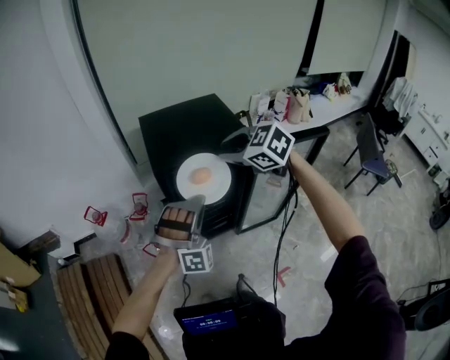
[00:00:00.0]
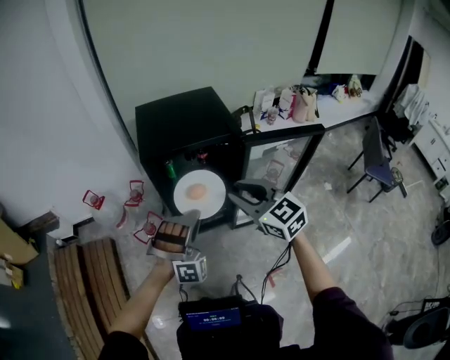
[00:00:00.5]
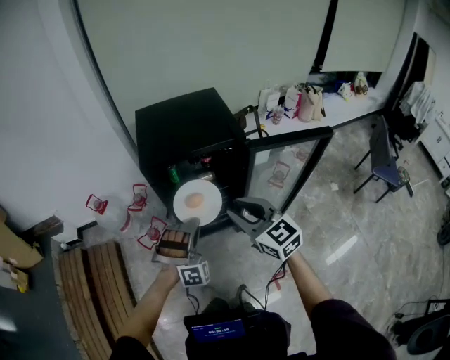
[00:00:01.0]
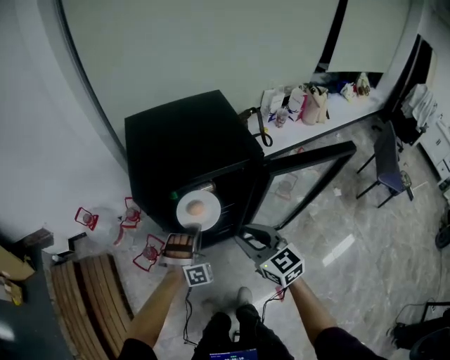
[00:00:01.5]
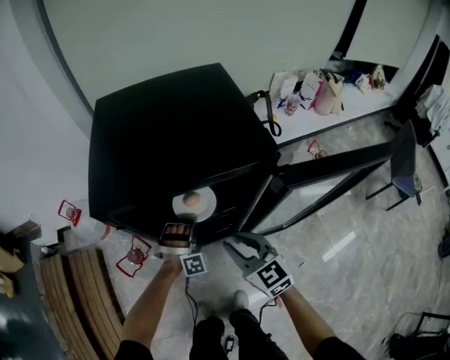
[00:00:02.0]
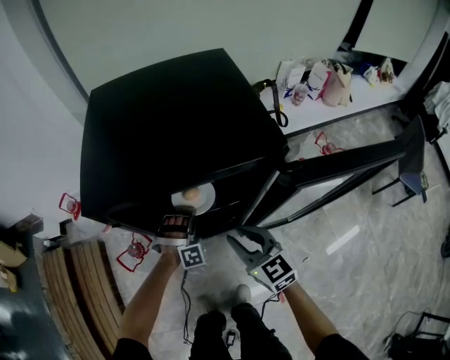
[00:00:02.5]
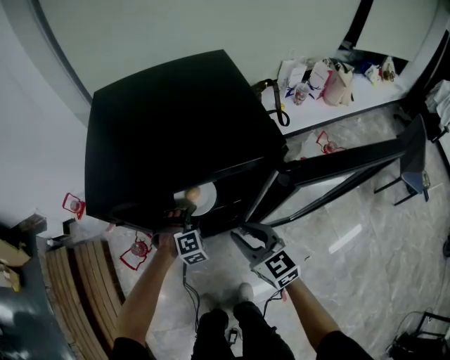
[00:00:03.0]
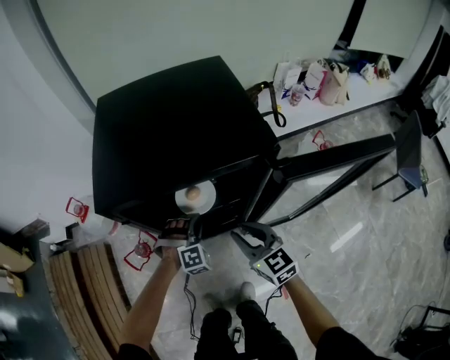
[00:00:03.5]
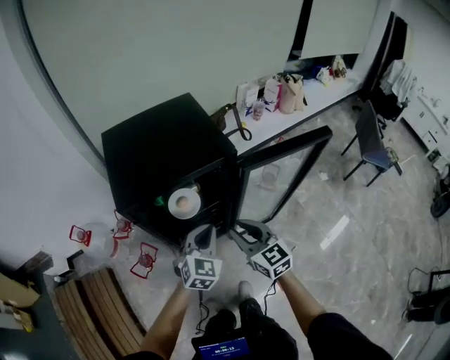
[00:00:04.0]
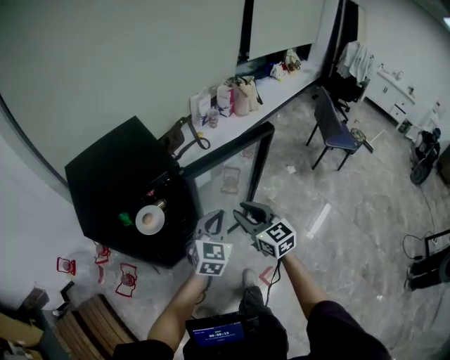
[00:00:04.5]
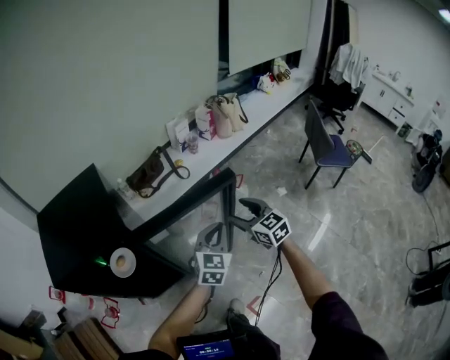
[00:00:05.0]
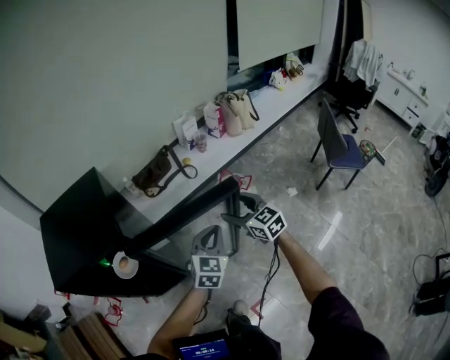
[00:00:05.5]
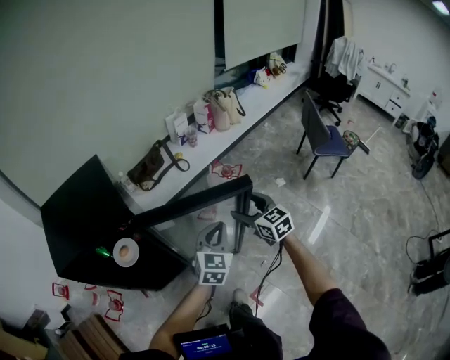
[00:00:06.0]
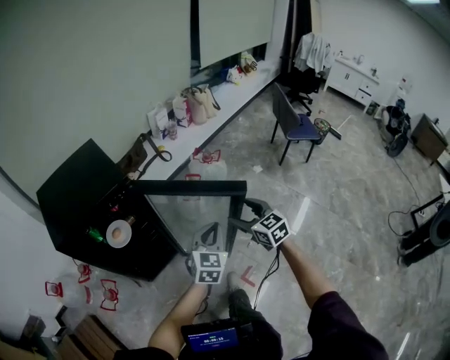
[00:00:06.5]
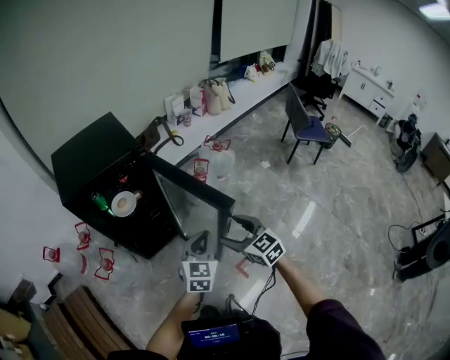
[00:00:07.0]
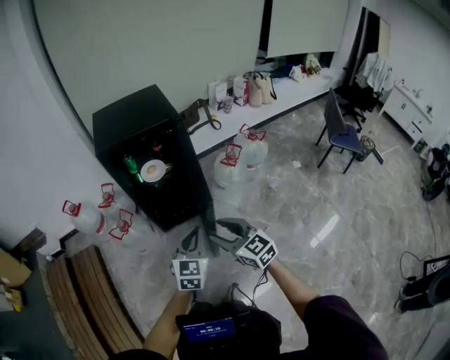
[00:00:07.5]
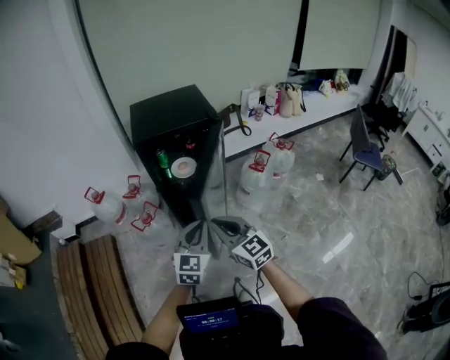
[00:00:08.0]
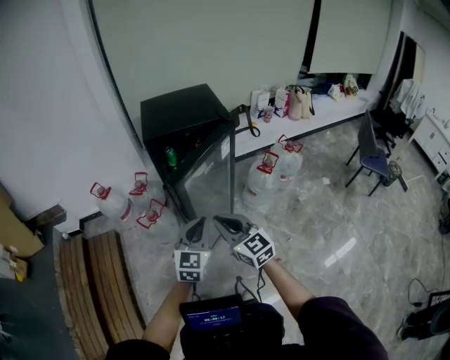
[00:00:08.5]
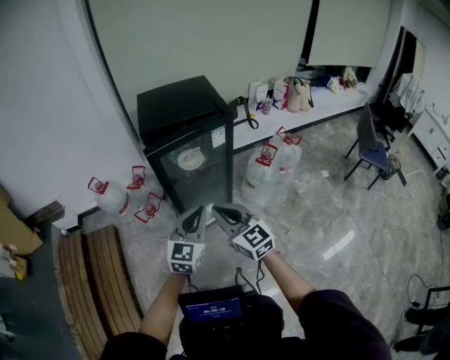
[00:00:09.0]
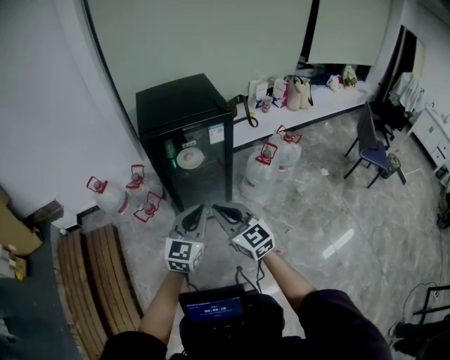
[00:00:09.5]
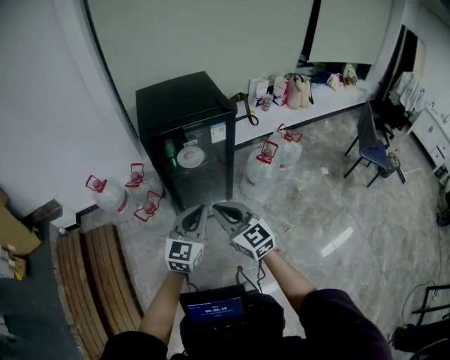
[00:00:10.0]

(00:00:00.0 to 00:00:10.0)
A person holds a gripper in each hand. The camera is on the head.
00:00:00.0 - 00:00:02.0: The right gripper travels downward by some 30 cm, and swivels roughly 30 degrees. Meanwhile the left gripper goes about 40 cm downward and forward, and turns by approximately 20 degrees.
00:00:02.0 - 00:00:04.0: The left gripper shifts some 25 cm upward and backward, twists some 60 degrees counterclockwise, seen from behind, and opens and closes again; the right gripper moves upward and backward, some 15 cm.
00:00:04.0 - 00:00:06.0: Both grippers move to the right, some 40 cm. The right gripper opens its fingers.
00:00:06.0 - 00:00:08.0: Both grippers are carried roughly 50 cm. The right gripper rotates some 30 degrees, and closes. The left gripper swivels some 20 degrees.
00:00:08.0 - 00:00:10.0: There are only small adjustments of the grippers.

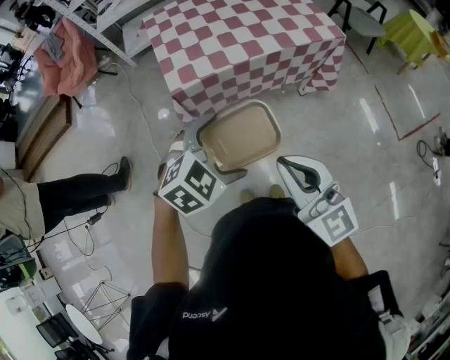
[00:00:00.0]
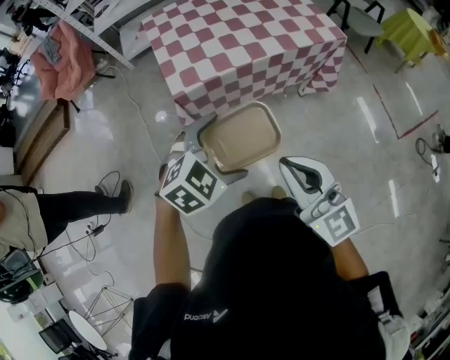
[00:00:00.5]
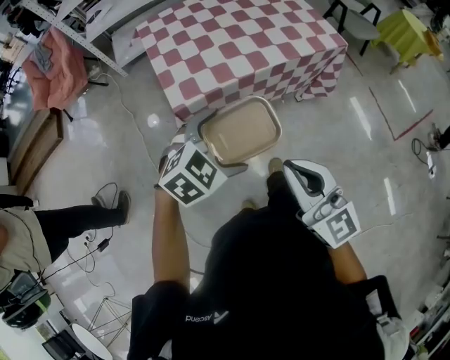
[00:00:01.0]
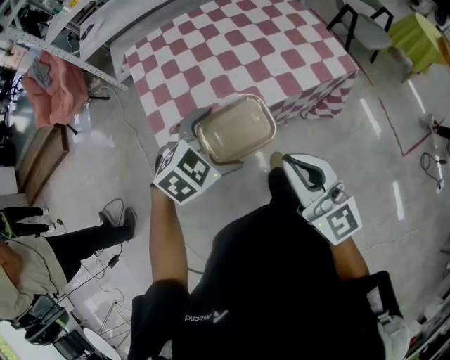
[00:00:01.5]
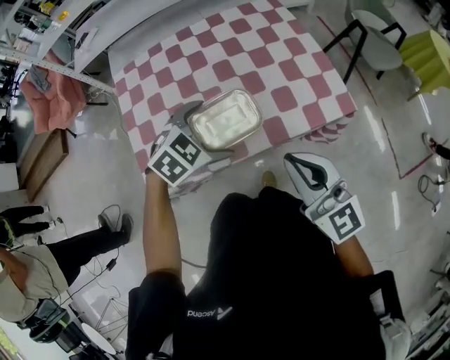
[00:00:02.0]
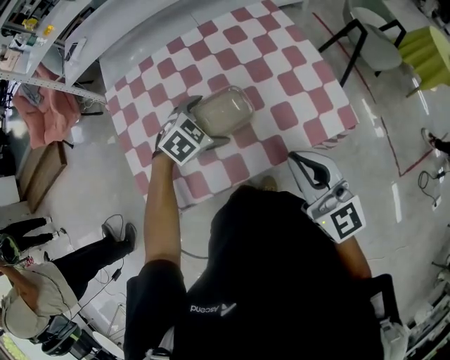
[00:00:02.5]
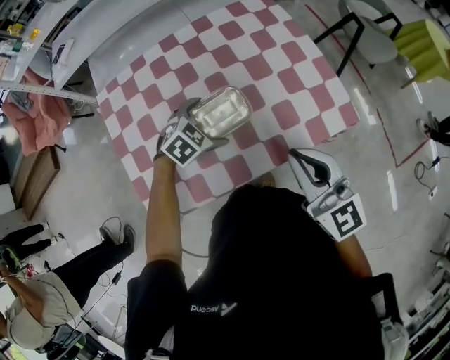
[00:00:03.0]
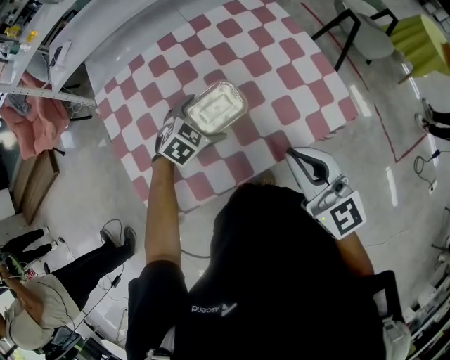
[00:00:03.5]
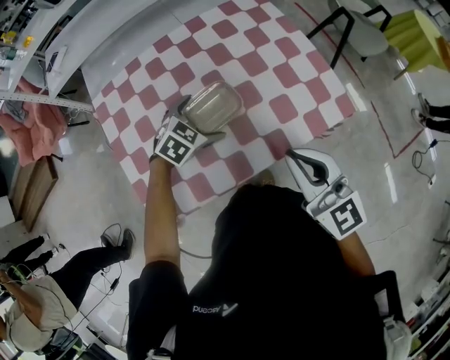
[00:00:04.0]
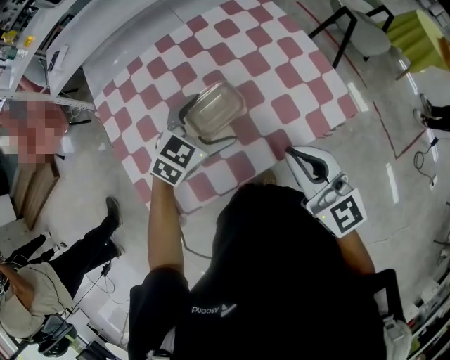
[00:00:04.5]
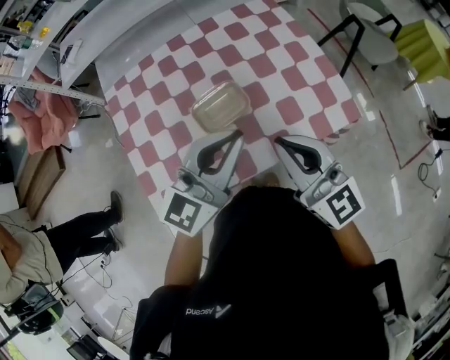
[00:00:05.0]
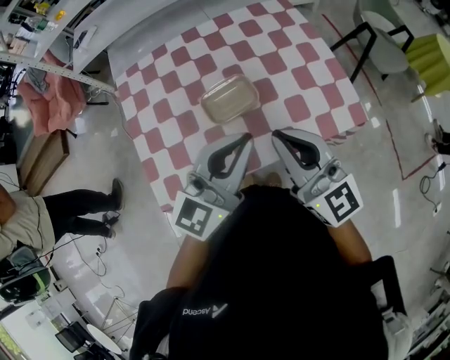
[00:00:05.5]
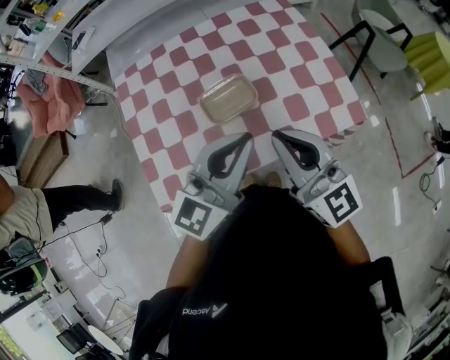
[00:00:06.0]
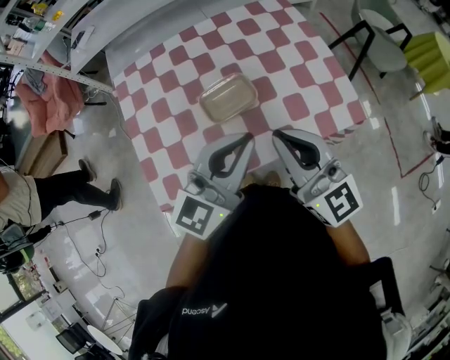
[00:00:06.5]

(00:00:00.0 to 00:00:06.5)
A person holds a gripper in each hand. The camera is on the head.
00:00:00.0 - 00:00:02.0: The pair of grippers is taken forward, roughly 50 cm.
00:00:02.0 - 00:00:04.5: Both grippers move forward, about 10 cm.
00:00:04.5 - 00:00:06.5: The right gripper changes place by about 5 cm. The left gripper goes about 20 cm upward and backward, tilts its fingers roughly 40 degrees upward, and closes.

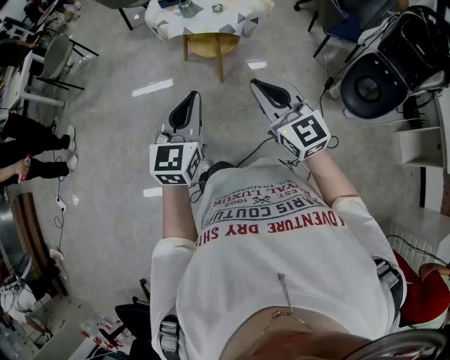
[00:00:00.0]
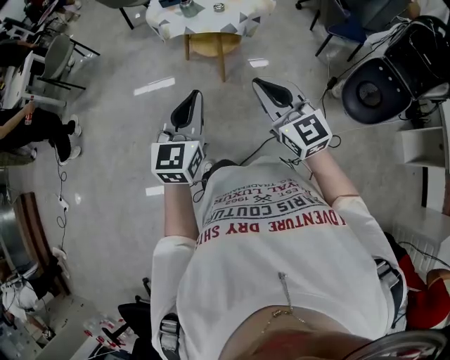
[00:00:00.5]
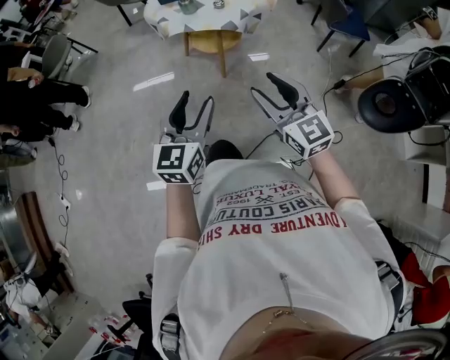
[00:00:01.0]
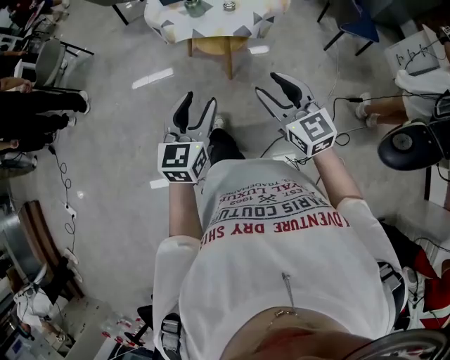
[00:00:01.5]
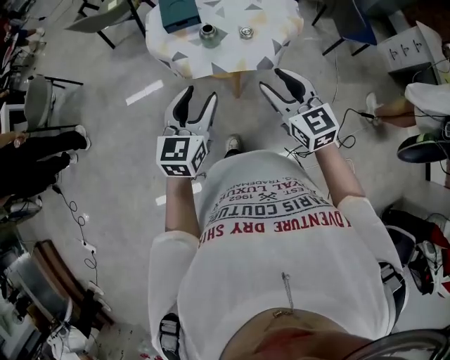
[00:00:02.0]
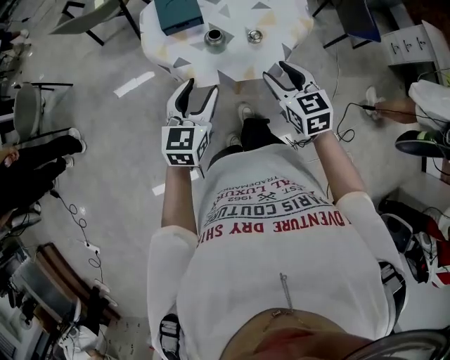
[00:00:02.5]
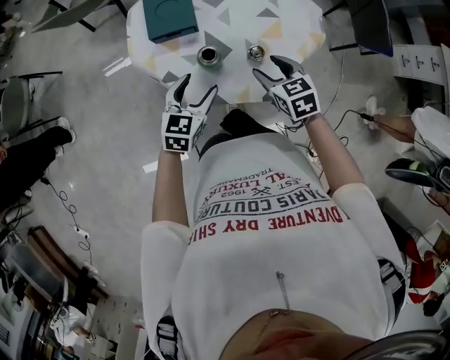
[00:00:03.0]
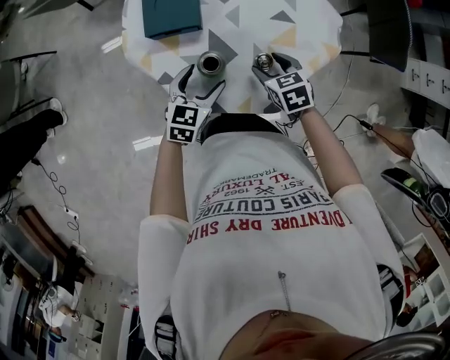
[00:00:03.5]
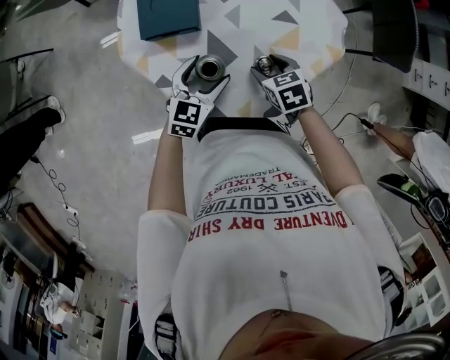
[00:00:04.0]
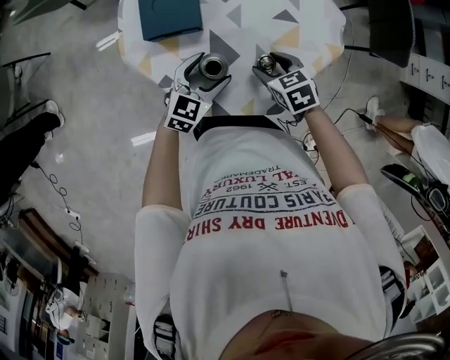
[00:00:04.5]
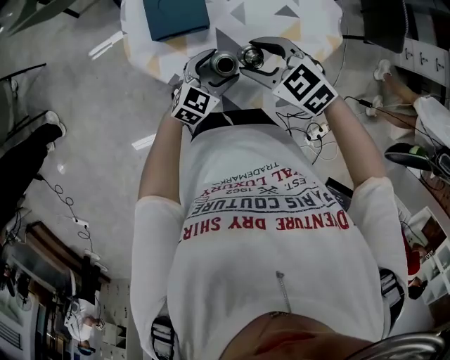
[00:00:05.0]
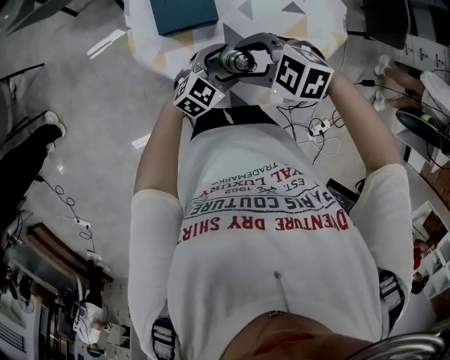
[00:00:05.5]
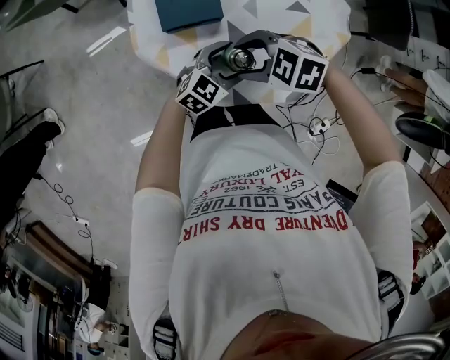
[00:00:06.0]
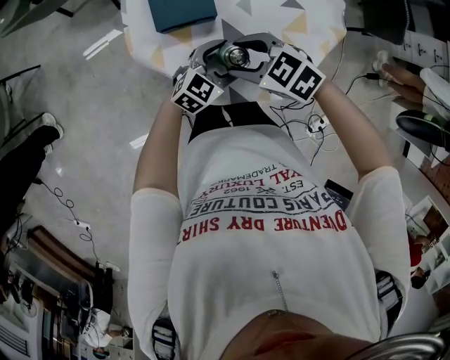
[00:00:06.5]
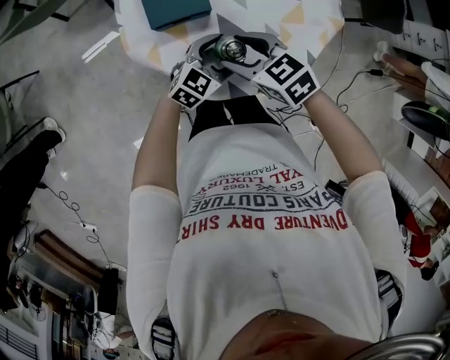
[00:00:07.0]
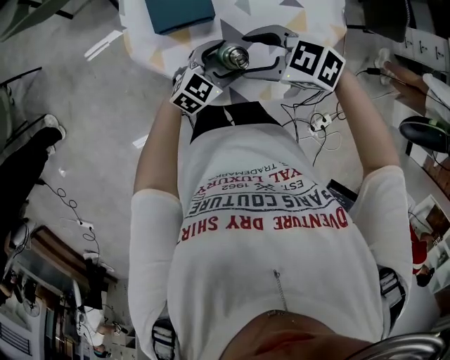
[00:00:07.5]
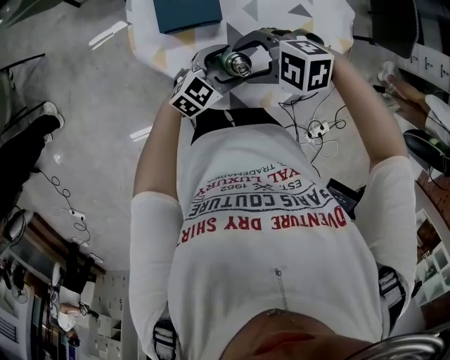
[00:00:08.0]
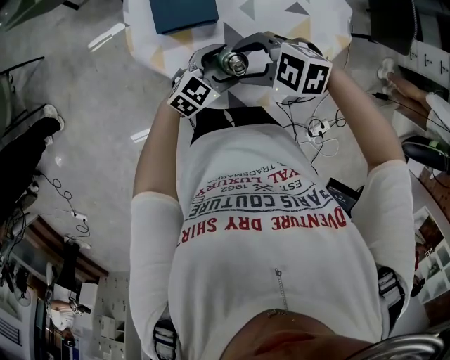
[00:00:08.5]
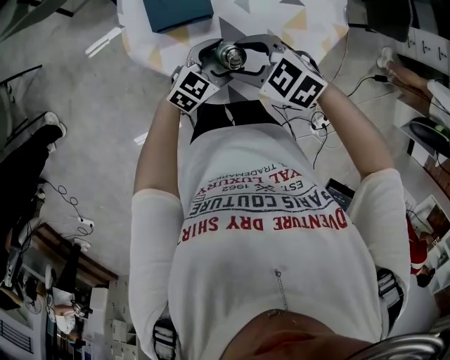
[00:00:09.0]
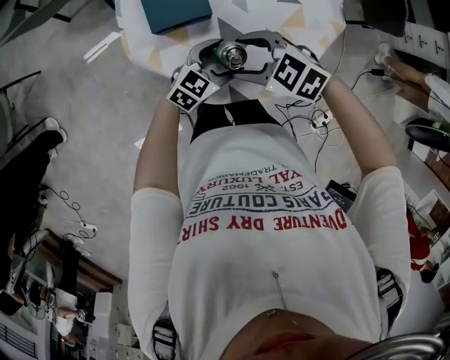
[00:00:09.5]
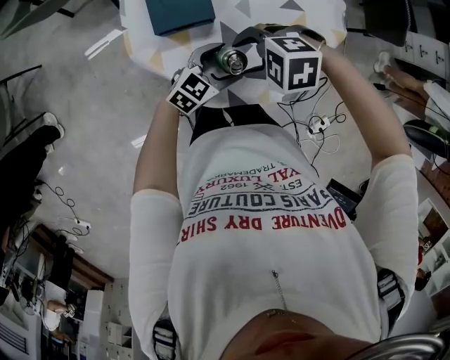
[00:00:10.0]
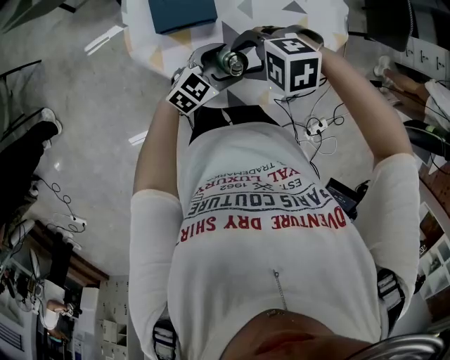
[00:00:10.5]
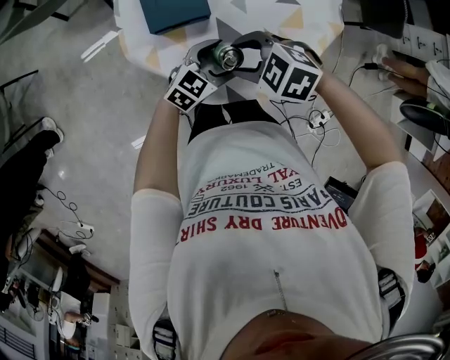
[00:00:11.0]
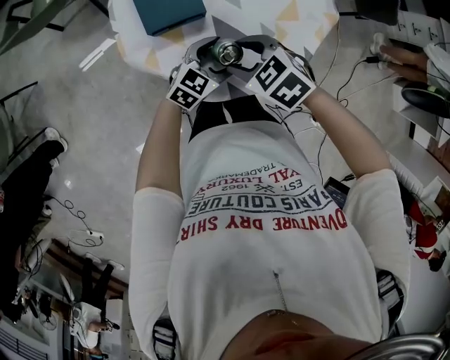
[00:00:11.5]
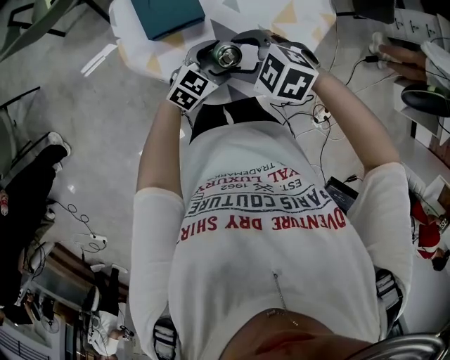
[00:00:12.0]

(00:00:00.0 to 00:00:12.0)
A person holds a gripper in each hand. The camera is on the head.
00:00:00.0 - 00:00:02.0: Both grippers travel together forward, about 35 cm. The right gripper swivels approximately 20 degrees, and opens. The left gripper opens up.
00:00:02.0 - 00:00:04.0: The two grippers go about 40 cm forward and downward. The right gripper angles its fingers downward, by about 40 degrees, while the left gripper opens.
00:00:04.0 - 00:00:06.0: The right gripper shifts by approximately 20 cm, and twists roughly 40 degrees counterclockwise, seen from behind, while the left gripper swivels some 30 degrees.
00:00:10.0 - 00:00:12.0: The right gripper rotates about 30 degrees.
